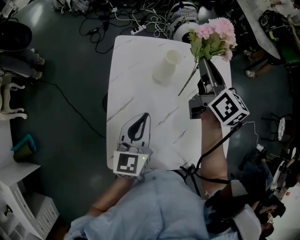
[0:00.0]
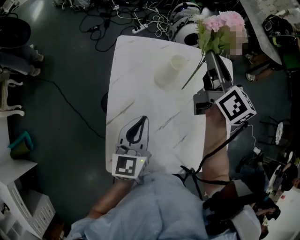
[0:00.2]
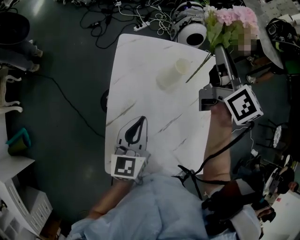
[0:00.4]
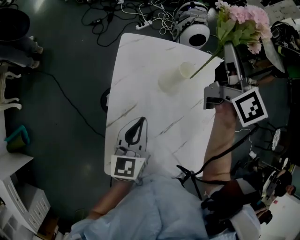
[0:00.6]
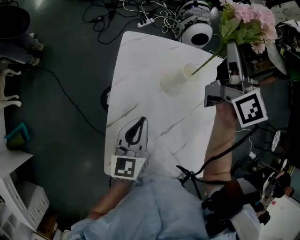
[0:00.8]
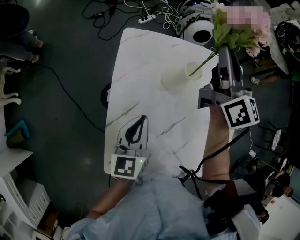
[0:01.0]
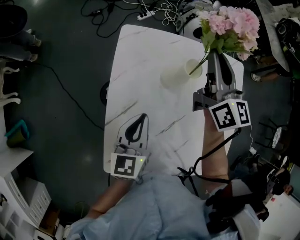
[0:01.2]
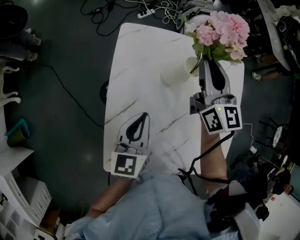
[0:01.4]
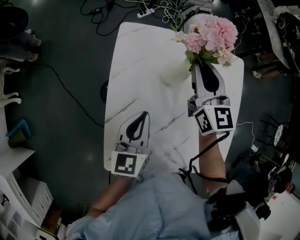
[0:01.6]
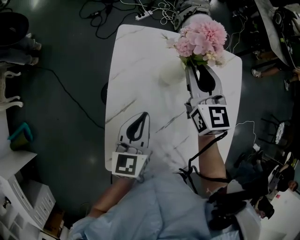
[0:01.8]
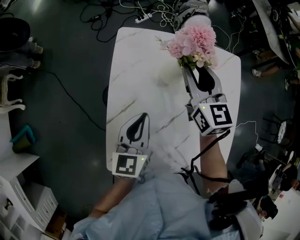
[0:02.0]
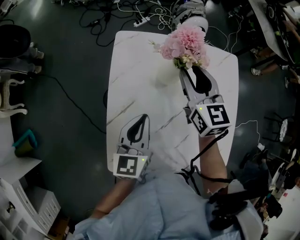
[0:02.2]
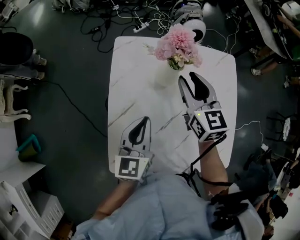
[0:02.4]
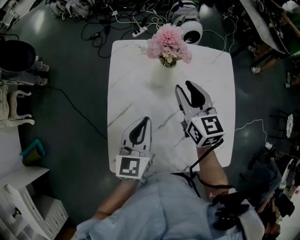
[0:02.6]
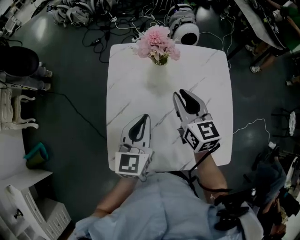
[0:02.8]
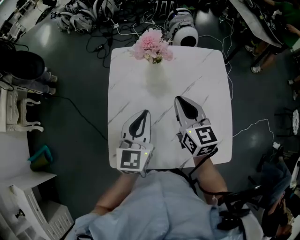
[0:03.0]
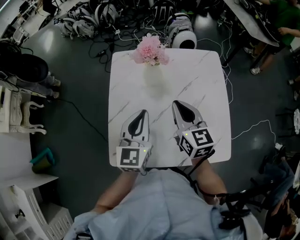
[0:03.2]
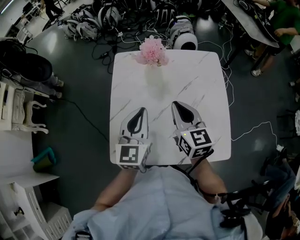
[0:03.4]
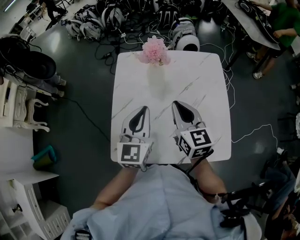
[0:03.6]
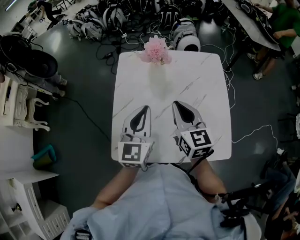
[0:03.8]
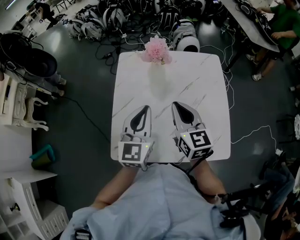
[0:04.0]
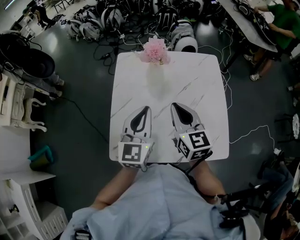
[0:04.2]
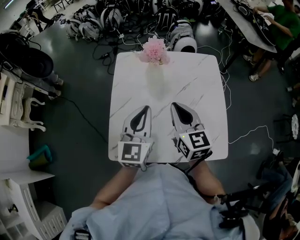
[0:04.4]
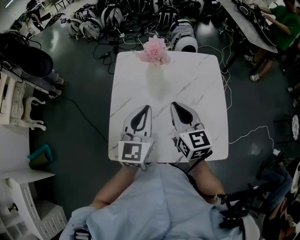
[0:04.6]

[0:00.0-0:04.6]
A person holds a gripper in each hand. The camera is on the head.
0.0 to 1.6 s: The right gripper goes roughly 10 cm to the left and downward, and changes its angle by approximately 30 degrees; the left gripper heads downward, covering some 5 cm.
1.6 to 3.0 s: The left gripper heads upward, to the right and backward, covering roughly 15 cm. The right gripper shifts roughly 20 cm backward.
3.0 to 4.6 s: The right gripper is displaced backward by about 5 cm, while the left gripper moves about 5 cm.

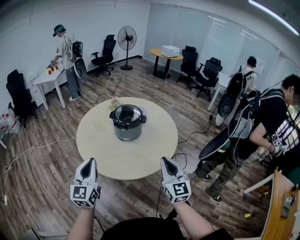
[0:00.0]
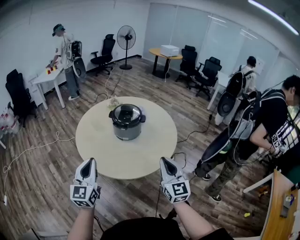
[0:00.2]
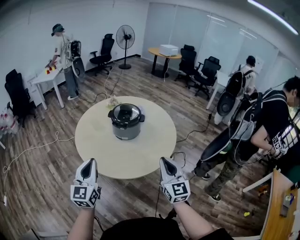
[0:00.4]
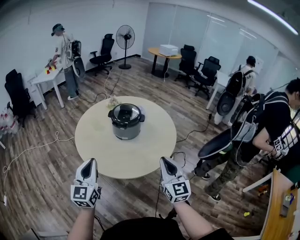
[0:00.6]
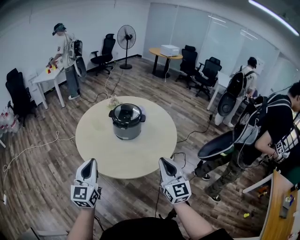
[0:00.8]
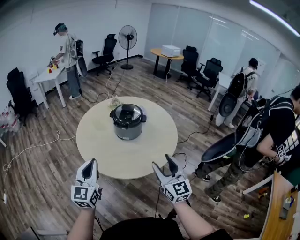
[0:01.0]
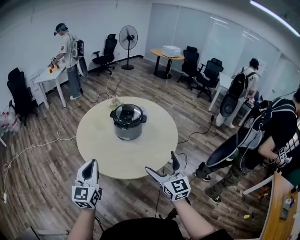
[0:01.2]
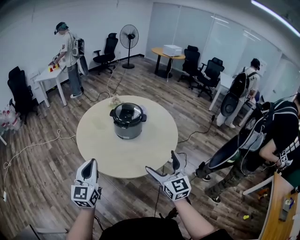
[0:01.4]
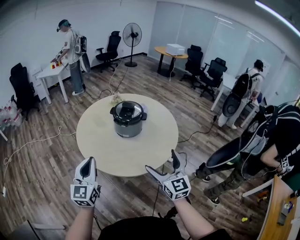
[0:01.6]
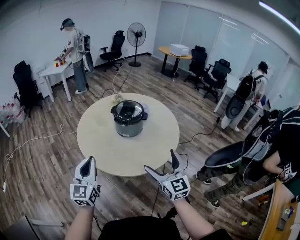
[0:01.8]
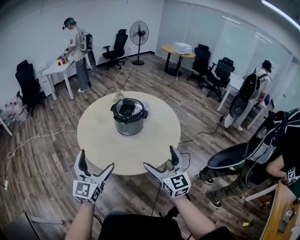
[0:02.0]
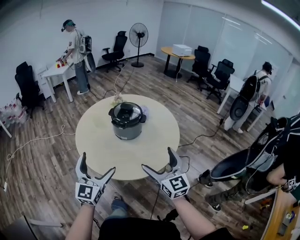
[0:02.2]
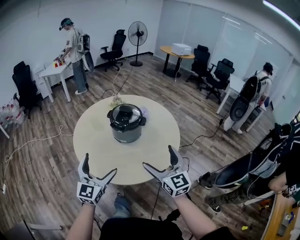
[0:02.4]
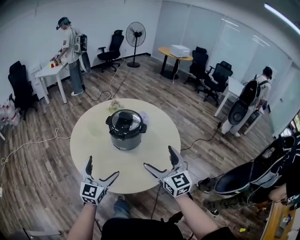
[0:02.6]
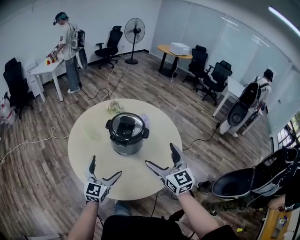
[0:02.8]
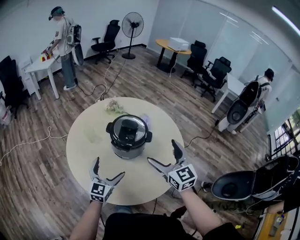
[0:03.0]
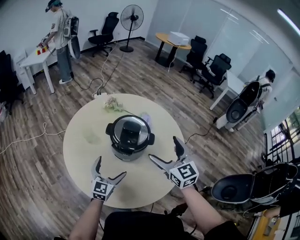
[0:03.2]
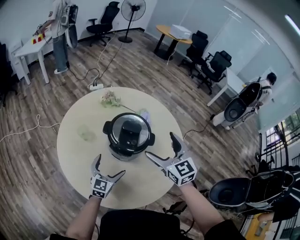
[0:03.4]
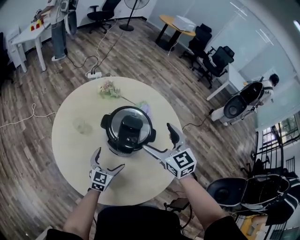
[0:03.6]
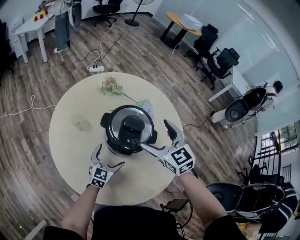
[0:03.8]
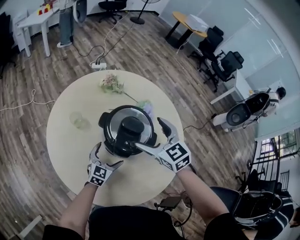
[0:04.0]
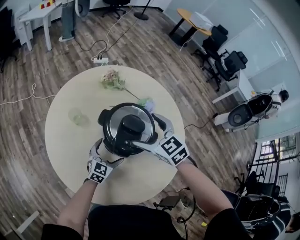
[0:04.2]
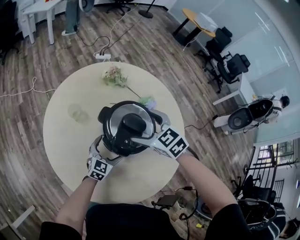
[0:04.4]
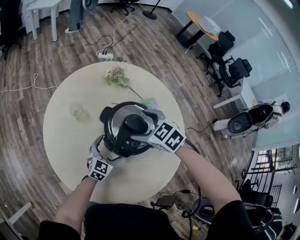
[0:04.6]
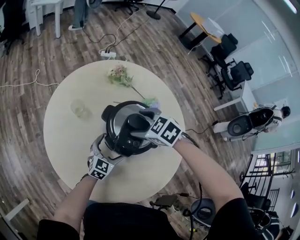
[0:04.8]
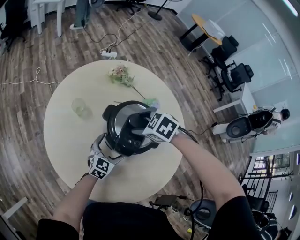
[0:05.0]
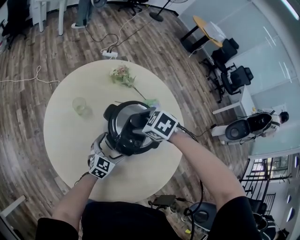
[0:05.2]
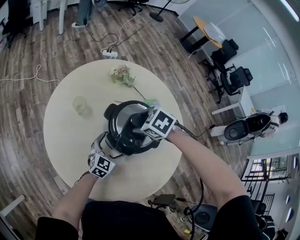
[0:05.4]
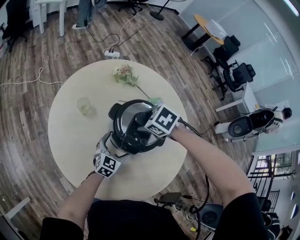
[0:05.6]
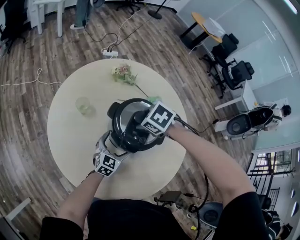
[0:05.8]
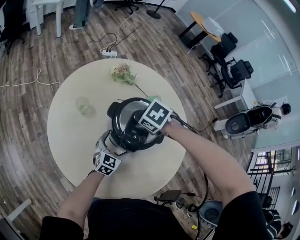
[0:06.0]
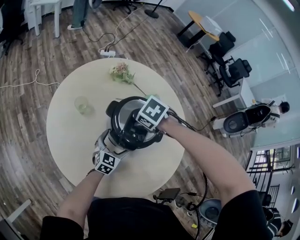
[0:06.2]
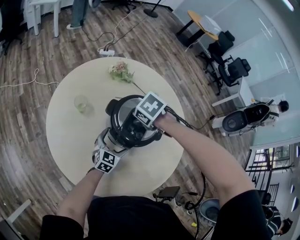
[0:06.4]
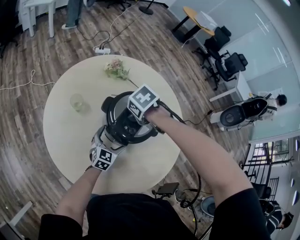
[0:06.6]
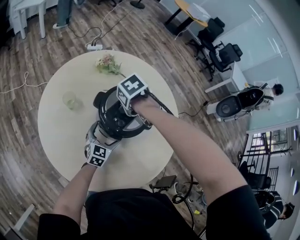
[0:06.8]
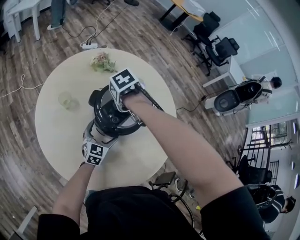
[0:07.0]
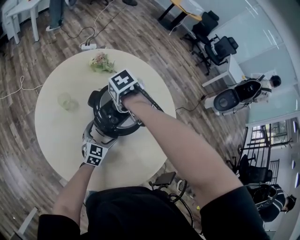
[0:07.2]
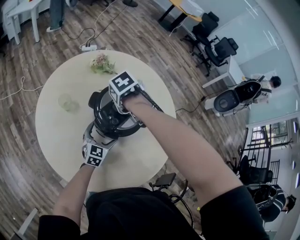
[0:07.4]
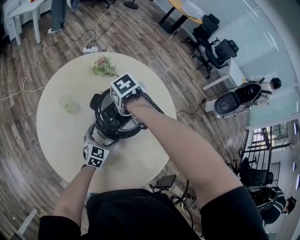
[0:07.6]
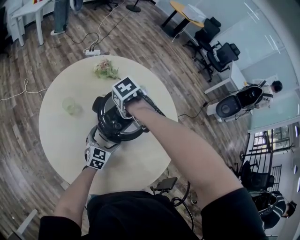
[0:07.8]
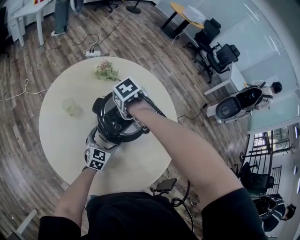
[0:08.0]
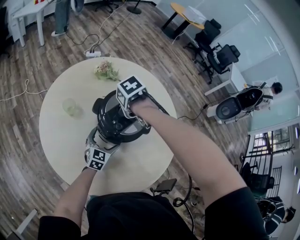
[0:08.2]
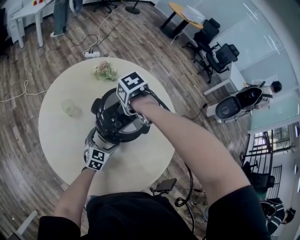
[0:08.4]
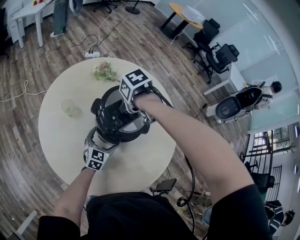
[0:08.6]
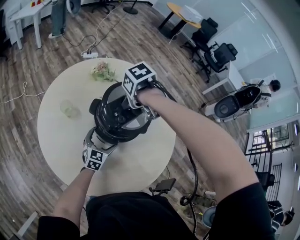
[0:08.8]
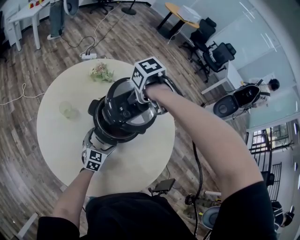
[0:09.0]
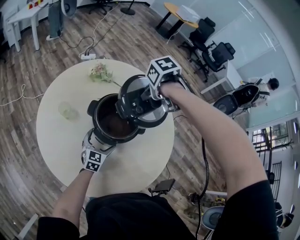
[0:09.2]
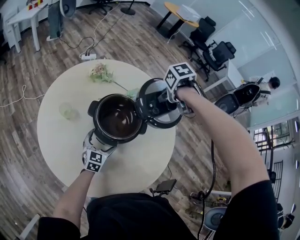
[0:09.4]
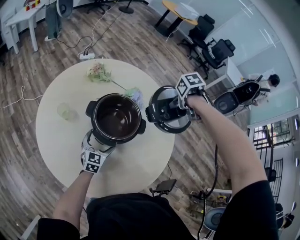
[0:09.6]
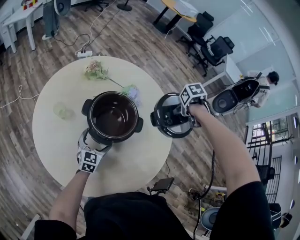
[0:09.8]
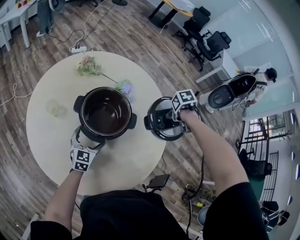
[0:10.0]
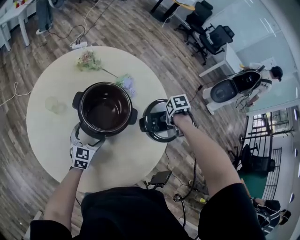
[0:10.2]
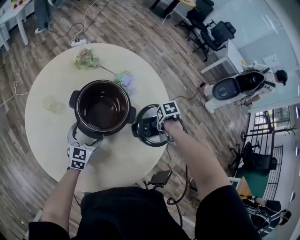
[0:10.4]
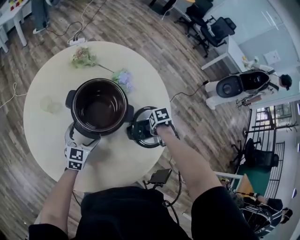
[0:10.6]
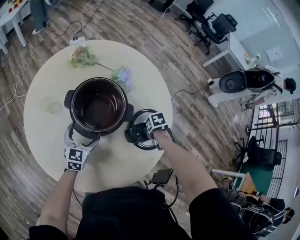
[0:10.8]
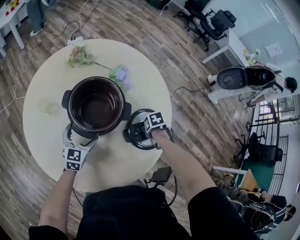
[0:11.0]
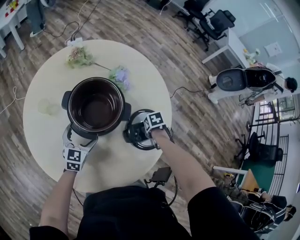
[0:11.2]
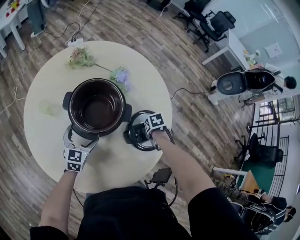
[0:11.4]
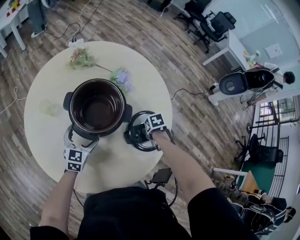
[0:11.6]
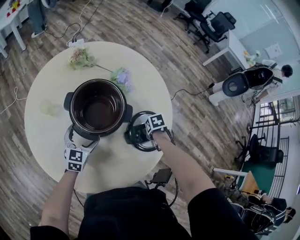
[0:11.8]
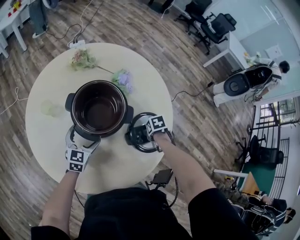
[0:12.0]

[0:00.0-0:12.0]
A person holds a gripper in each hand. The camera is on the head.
0.0 to 1.6 s: The right gripper opens.
1.6 to 3.0 s: The right gripper moves forward, some 30 cm. The left gripper travels forward and downward by approximately 35 cm, and opens up.
3.0 to 4.4 s: The left gripper shifts some 25 cm forward and downward, while the right gripper moves forward, downward and to the left, approximately 30 cm, and points its fingers about 40 degrees further downward.
4.4 to 6.0 s: The right gripper shifts approximately 5 cm downward, angles its fingers downward, by roughly 40 degrees, and closes its fingers.
6.0 to 7.6 s: The right gripper turns by some 30 degrees.
7.6 to 9.0 s: The right gripper moves upward, about 10 cm.
9.0 to 10.4 s: The right gripper ends up approximately 35 cm from where it was, and changes its angle by approximately 30 degrees.
10.4 to 12.0 s: The right gripper is displaced downward by about 10 cm.

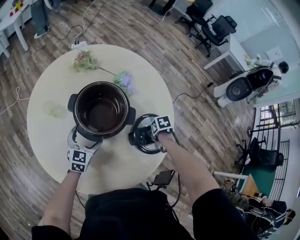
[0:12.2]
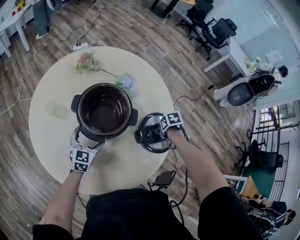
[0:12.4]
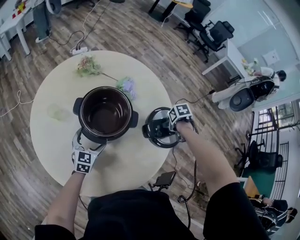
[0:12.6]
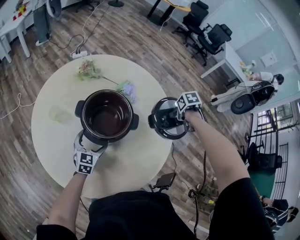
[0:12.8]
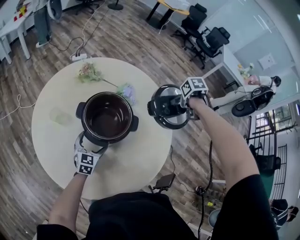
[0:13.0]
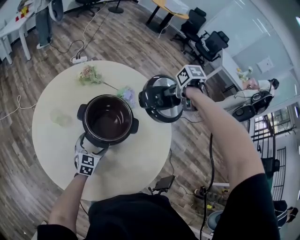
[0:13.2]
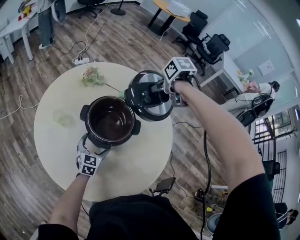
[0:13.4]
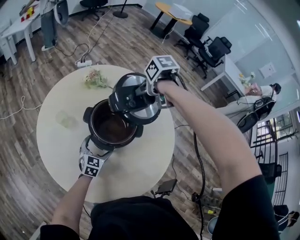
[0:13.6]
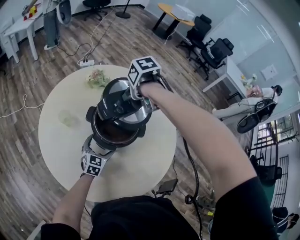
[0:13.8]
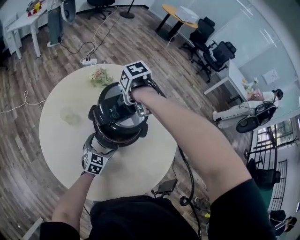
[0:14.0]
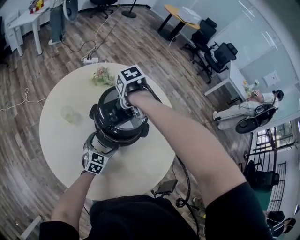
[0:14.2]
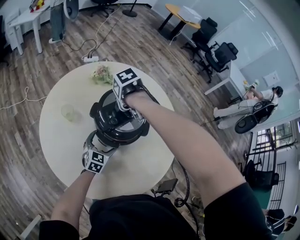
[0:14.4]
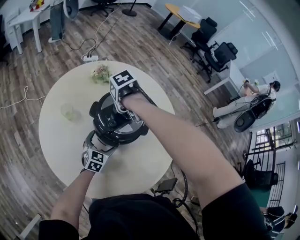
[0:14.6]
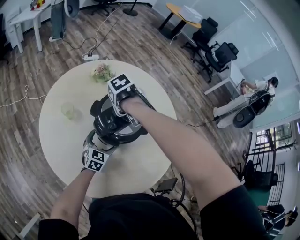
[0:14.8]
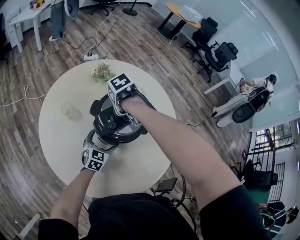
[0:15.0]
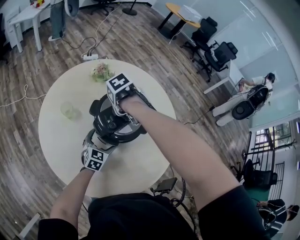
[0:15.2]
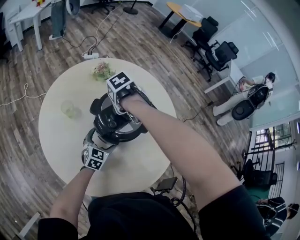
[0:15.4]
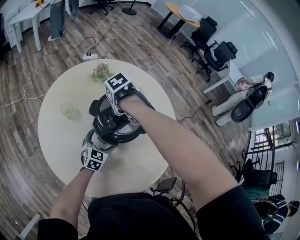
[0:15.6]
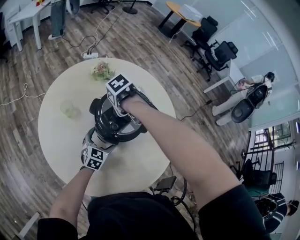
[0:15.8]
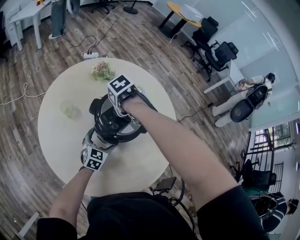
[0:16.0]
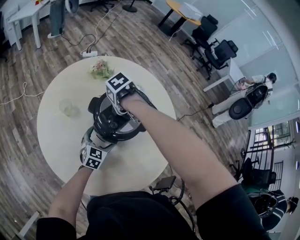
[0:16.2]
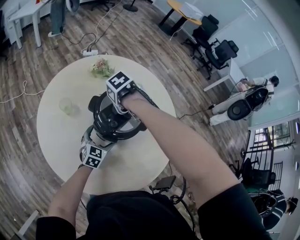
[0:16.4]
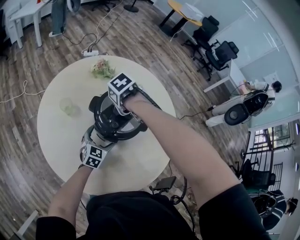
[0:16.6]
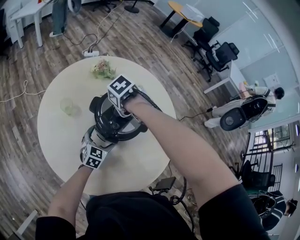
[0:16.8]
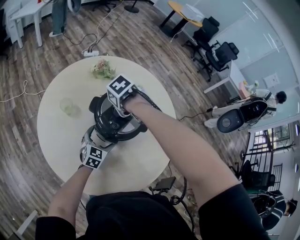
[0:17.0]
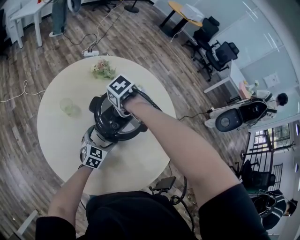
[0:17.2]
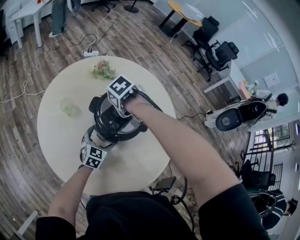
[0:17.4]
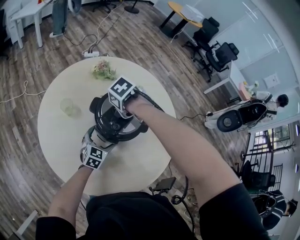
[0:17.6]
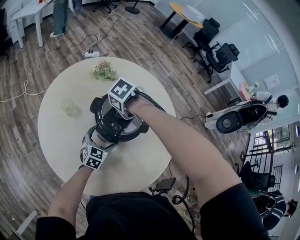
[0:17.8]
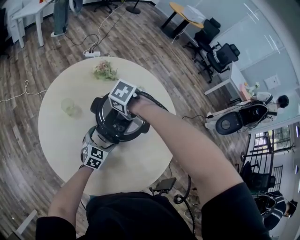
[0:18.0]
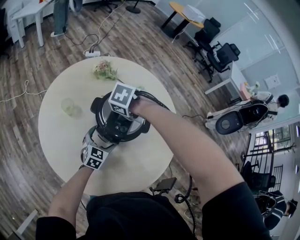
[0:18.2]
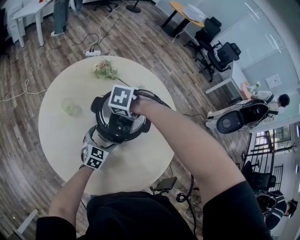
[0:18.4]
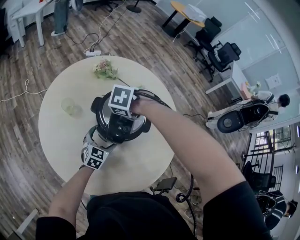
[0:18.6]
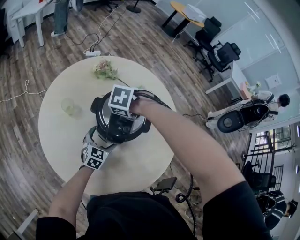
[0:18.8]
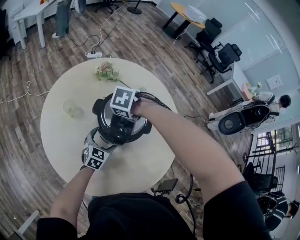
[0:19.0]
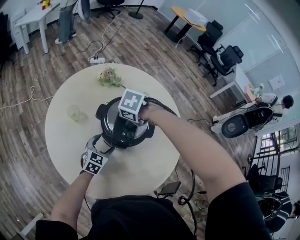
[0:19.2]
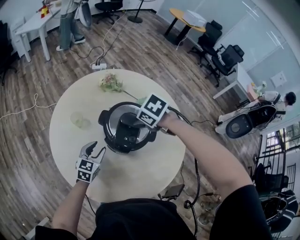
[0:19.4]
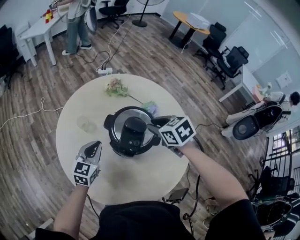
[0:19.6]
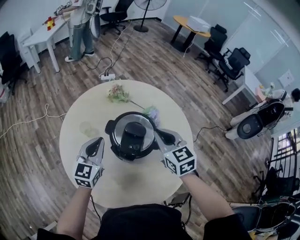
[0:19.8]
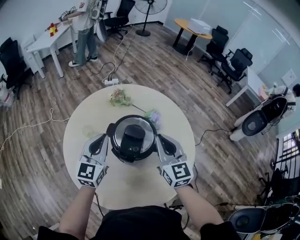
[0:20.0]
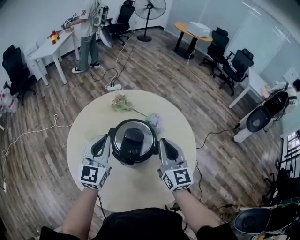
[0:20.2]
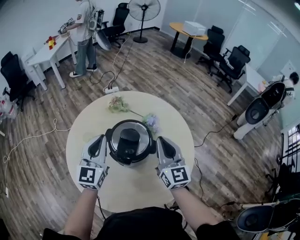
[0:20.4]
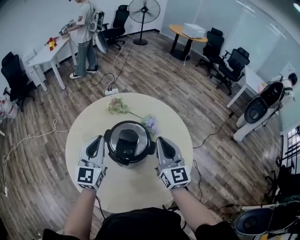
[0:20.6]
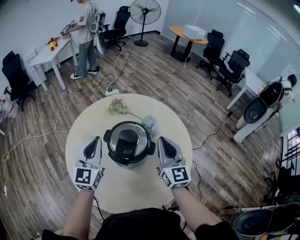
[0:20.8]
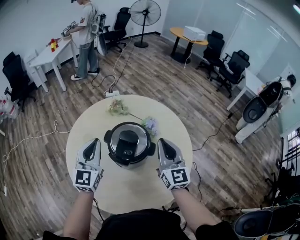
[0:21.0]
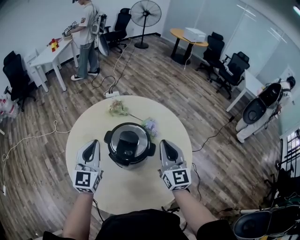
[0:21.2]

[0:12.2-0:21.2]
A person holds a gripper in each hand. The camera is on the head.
12.2 to 13.8 s: The right gripper shifts by some 40 cm.
13.8 to 15.2 s: The right gripper ends up roughly 10 cm from where it was.
15.2 to 16.6 s: The grippers move only a little.
16.6 to 18.2 s: The right gripper swivels about 30 degrees.
18.2 to 19.8 s: The left gripper heads upward, covering about 20 cm, swivels about 20 degrees, and closes its fingers. The right gripper shifts roughly 15 cm upward, angles its fingers upward, by about 60 degrees, and closes.
19.8 to 21.2 s: The left gripper heads upward, covering roughly 10 cm; the right gripper goes approximately 10 cm to the right, upward and backward, and changes its angle by roughly 30 degrees.
